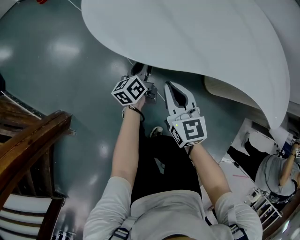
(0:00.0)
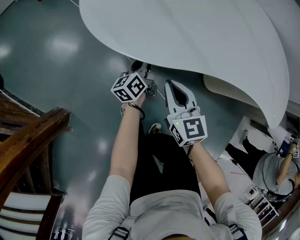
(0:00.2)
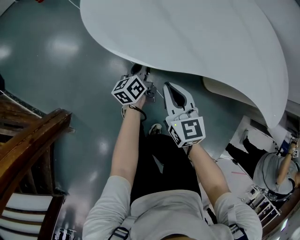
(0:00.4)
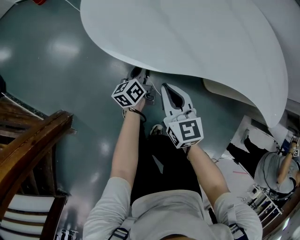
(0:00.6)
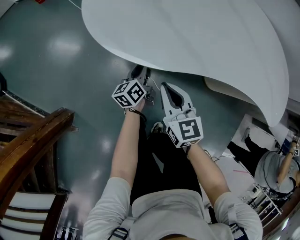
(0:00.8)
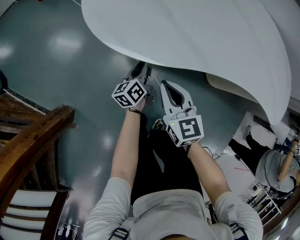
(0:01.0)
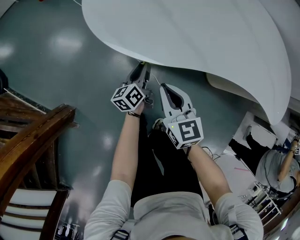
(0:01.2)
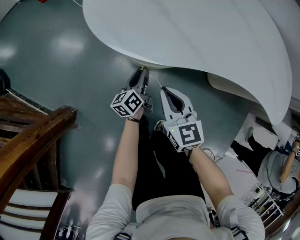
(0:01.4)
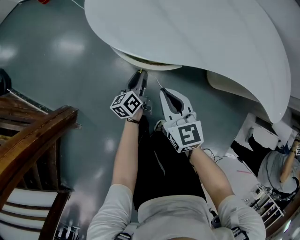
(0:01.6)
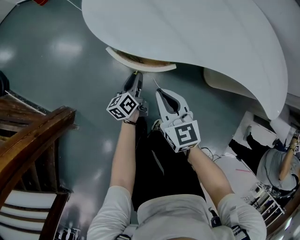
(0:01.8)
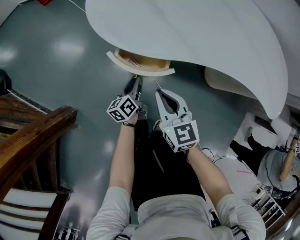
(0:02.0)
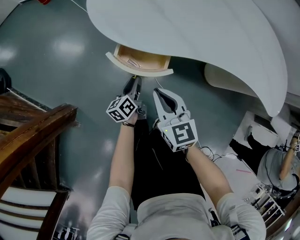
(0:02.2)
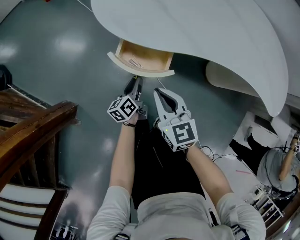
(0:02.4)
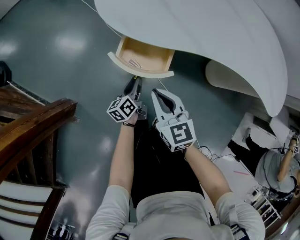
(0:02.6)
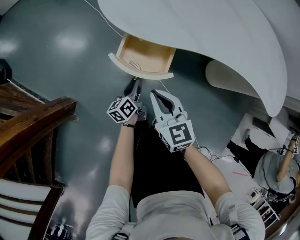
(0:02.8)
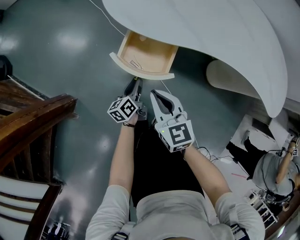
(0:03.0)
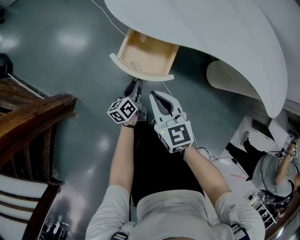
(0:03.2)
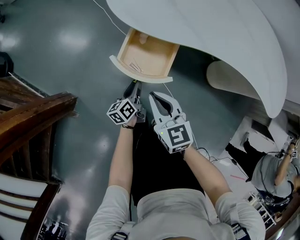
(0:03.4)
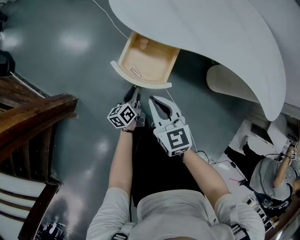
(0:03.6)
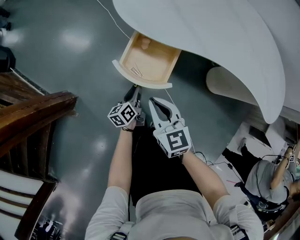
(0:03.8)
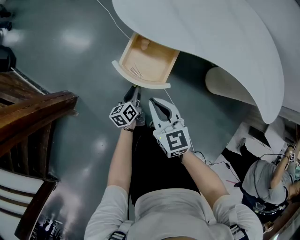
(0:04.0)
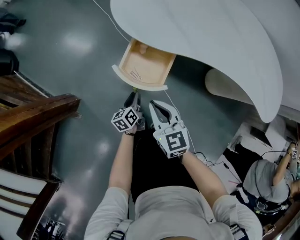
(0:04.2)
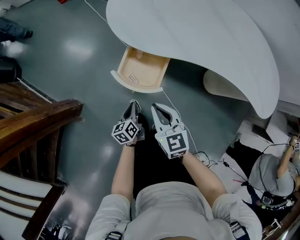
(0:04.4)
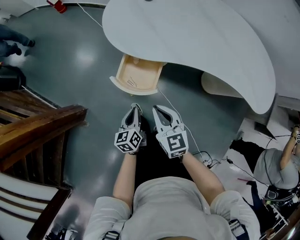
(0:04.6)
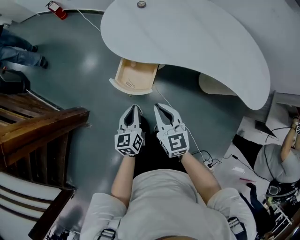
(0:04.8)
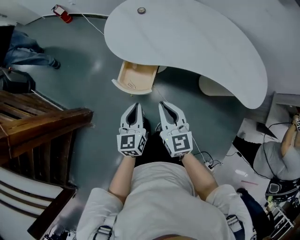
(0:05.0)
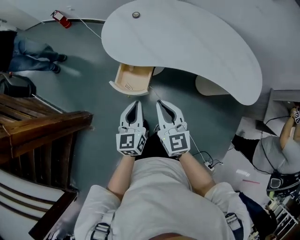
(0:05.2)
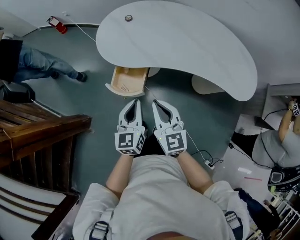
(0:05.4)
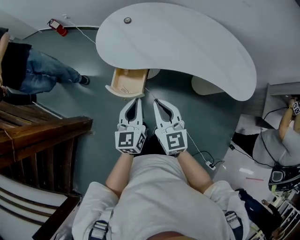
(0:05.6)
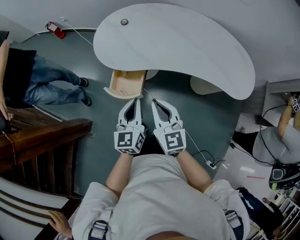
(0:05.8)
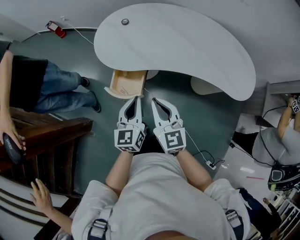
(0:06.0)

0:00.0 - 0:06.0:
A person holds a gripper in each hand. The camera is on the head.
0:00.0 - 0:01.6: The right gripper shifts by about 5 cm; the left gripper shifts approximately 10 cm backward.
0:01.6 - 0:03.0: The right gripper shifts approximately 10 cm backward and to the left. Meanwhile the left gripper travels backward by approximately 10 cm.
0:03.0 - 0:04.4: The right gripper heads upward, covering approximately 5 cm; the left gripper travels backward and upward by about 10 cm, and closes its fingers.
0:04.4 - 0:06.0: The left gripper moves upward and to the right, about 40 cm, and swivels about 40 degrees. Meanwhile the right gripper moves upward and to the right, approximately 25 cm, and turns by about 20 degrees.

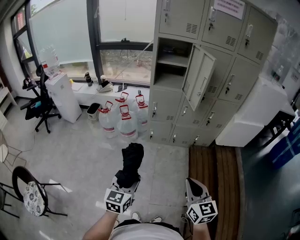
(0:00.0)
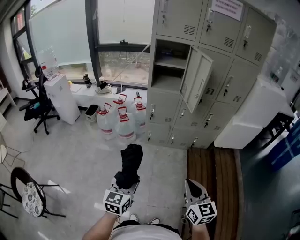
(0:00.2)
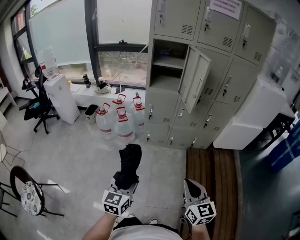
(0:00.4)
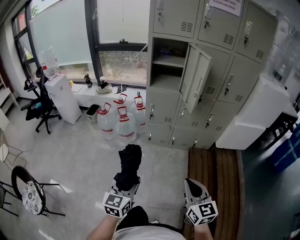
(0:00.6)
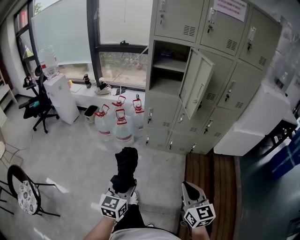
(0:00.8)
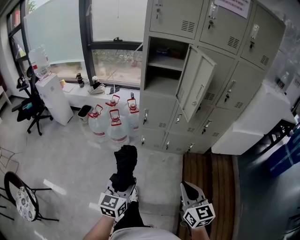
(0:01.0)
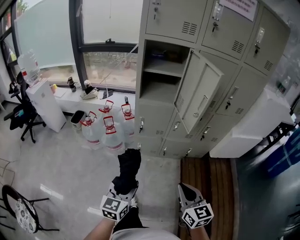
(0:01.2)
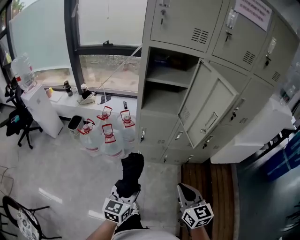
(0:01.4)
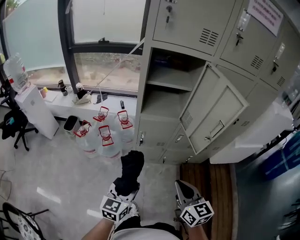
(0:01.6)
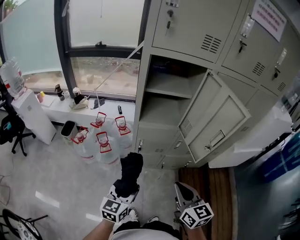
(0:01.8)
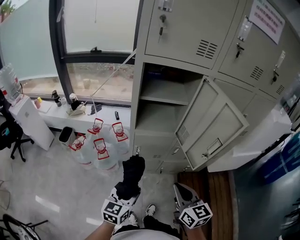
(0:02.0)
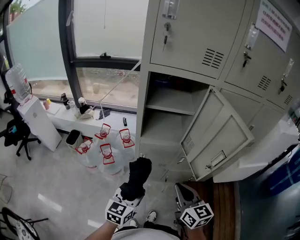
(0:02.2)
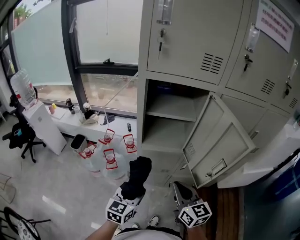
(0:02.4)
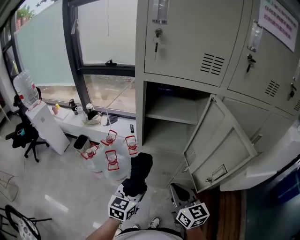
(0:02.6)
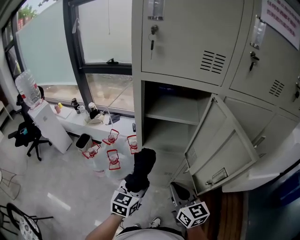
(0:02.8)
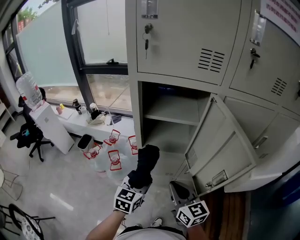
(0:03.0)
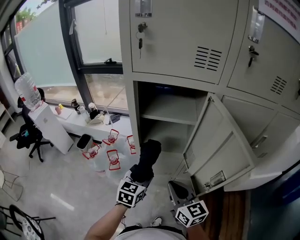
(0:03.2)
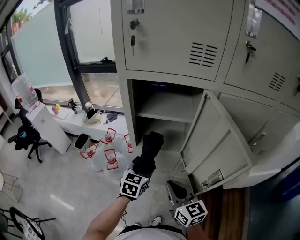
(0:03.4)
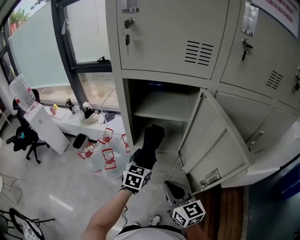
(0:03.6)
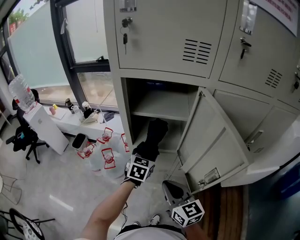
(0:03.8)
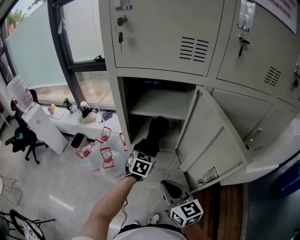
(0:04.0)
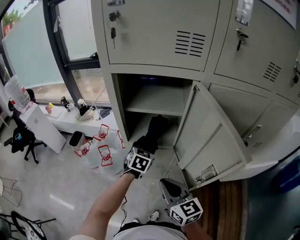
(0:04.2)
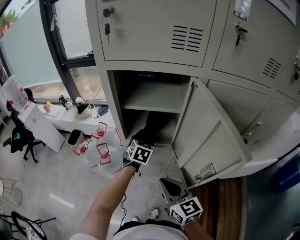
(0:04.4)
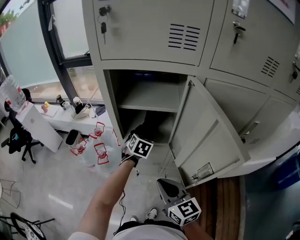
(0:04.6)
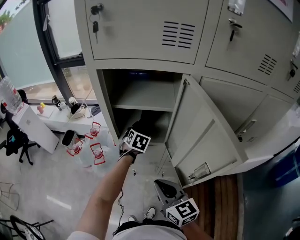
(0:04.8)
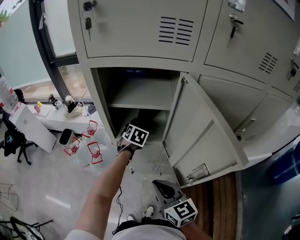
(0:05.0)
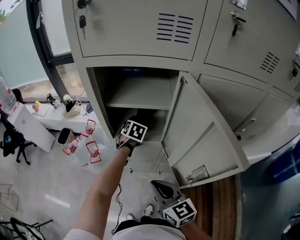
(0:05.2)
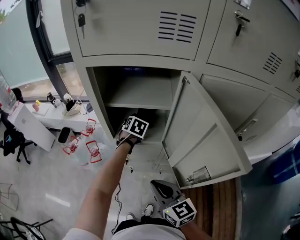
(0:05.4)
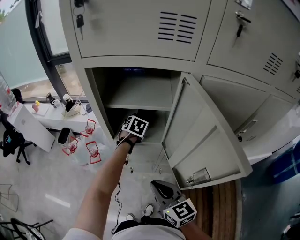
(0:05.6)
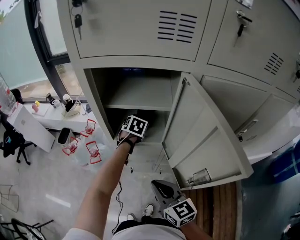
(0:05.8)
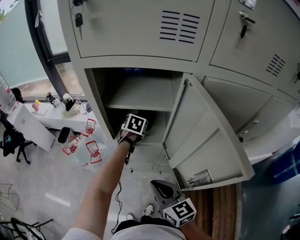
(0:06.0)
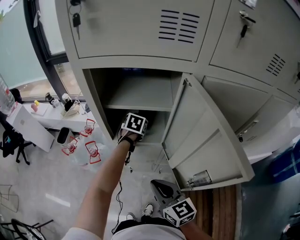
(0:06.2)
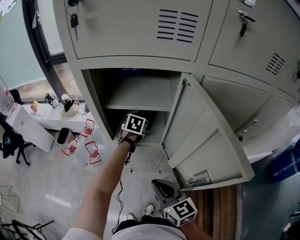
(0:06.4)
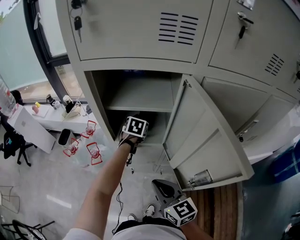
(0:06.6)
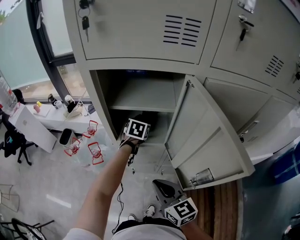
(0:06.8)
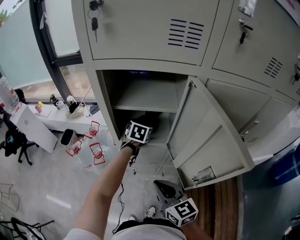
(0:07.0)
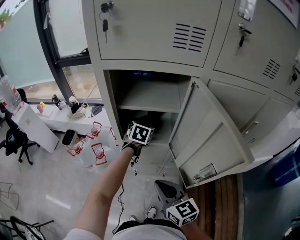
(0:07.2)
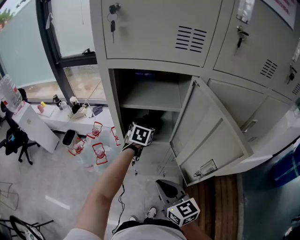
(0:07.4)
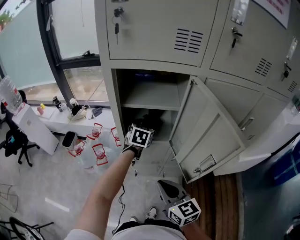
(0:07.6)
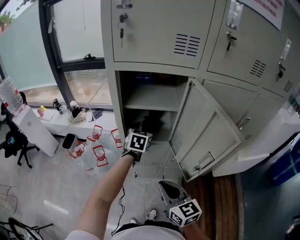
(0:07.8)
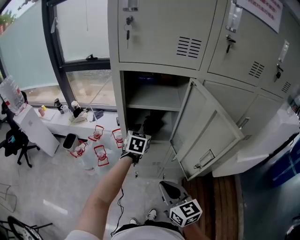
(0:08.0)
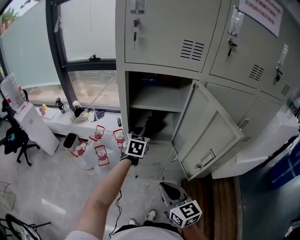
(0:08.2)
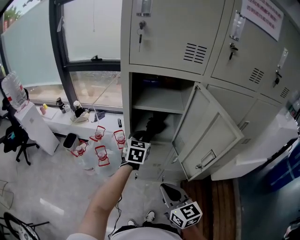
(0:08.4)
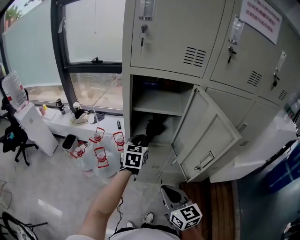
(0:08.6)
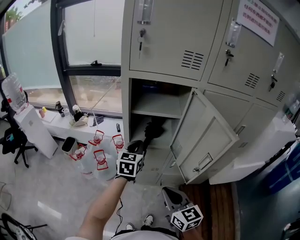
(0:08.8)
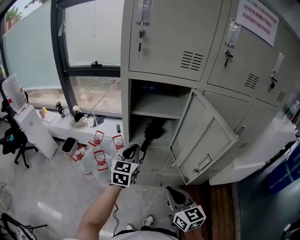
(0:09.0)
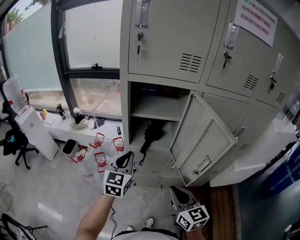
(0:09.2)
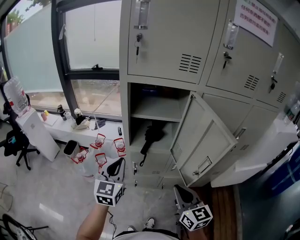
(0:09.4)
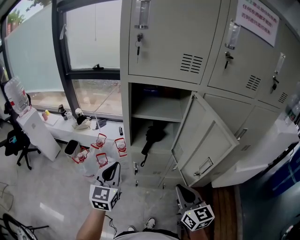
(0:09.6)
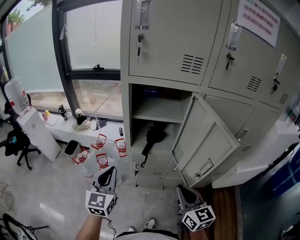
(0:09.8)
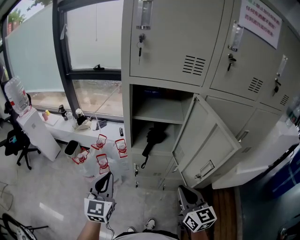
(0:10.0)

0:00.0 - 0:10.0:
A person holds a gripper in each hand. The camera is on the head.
0:00.0 - 0:01.4: The two grippers go about 25 cm forward.
0:01.4 - 0:02.8: The grippers both shift forward by some 25 cm.
0:02.8 - 0:04.2: The left gripper shifts about 20 cm forward and to the right.
0:04.2 - 0:05.8: The left gripper travels forward by about 10 cm.
0:05.8 - 0:07.2: The left gripper shifts approximately 5 cm upward.
0:07.2 - 0:08.6: The left gripper heads backward, to the left and upward, covering approximately 15 cm, and closes up. Meanwhile the right gripper is displaced backward by approximately 5 cm.
0:08.6 - 0:10.0: The left gripper shifts roughly 20 cm backward and to the left; the right gripper travels to the right by about 5 cm.

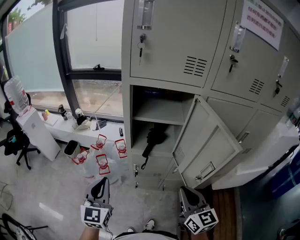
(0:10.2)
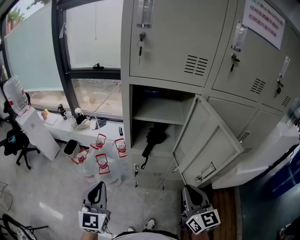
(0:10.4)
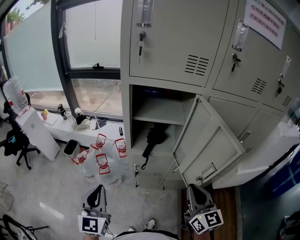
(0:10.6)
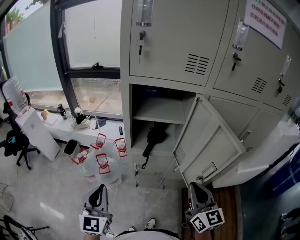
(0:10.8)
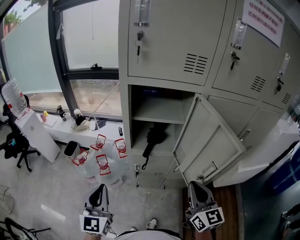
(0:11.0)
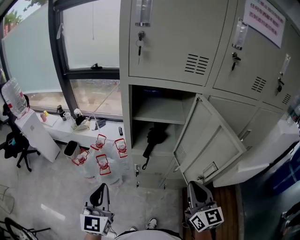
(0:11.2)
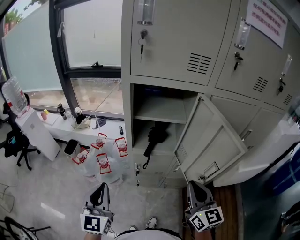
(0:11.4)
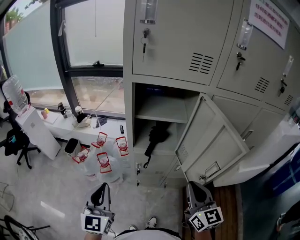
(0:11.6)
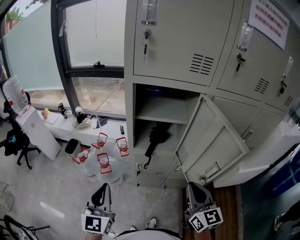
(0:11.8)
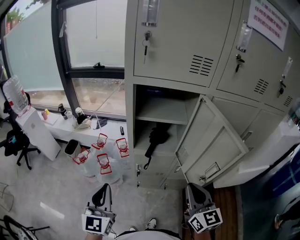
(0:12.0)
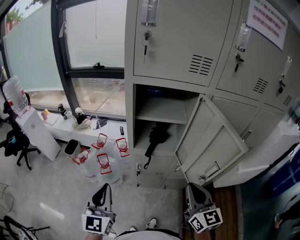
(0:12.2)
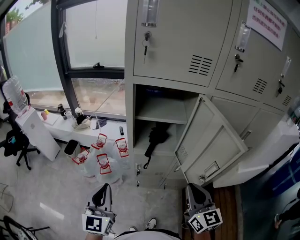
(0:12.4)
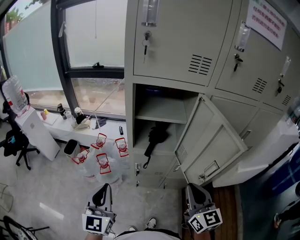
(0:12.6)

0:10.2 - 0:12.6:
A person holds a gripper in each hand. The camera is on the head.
0:10.2 - 0:12.6: The grippers stay close to where they were, moving slightly.

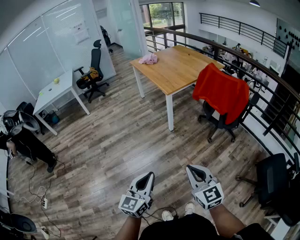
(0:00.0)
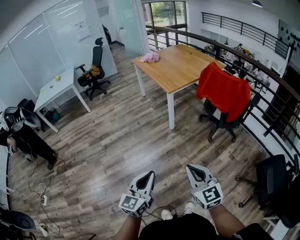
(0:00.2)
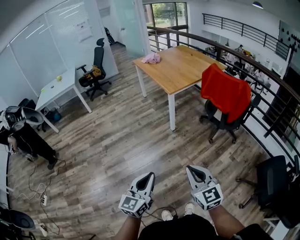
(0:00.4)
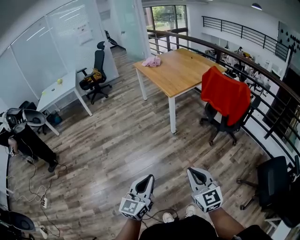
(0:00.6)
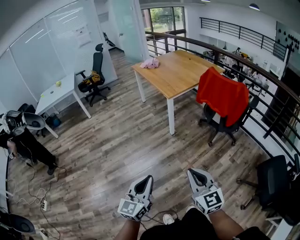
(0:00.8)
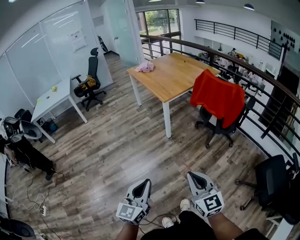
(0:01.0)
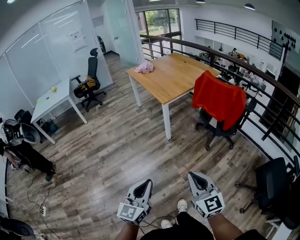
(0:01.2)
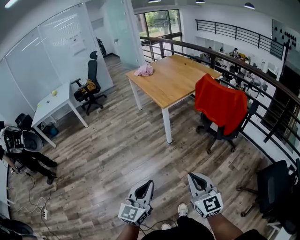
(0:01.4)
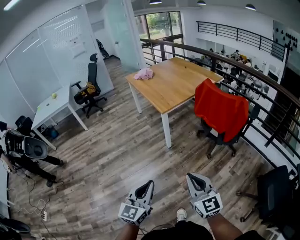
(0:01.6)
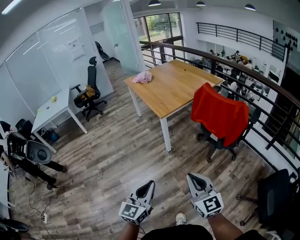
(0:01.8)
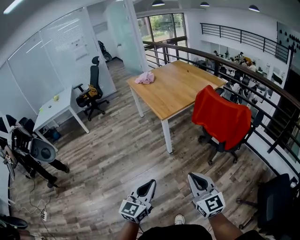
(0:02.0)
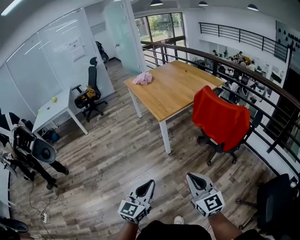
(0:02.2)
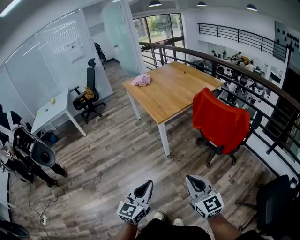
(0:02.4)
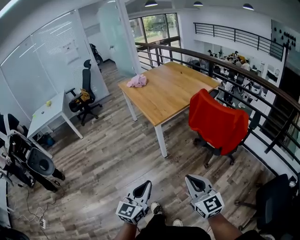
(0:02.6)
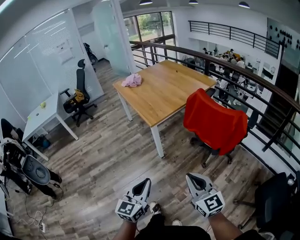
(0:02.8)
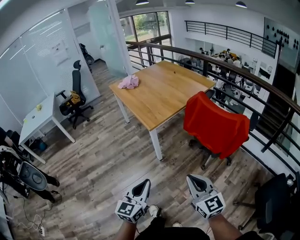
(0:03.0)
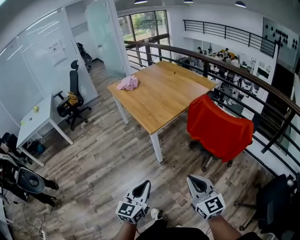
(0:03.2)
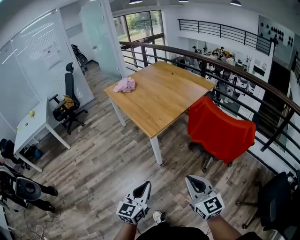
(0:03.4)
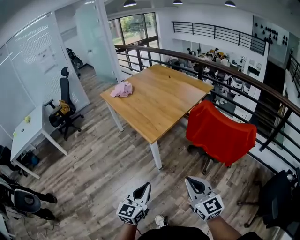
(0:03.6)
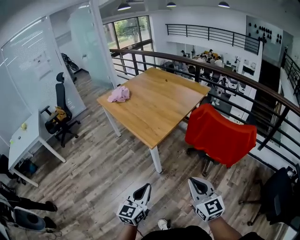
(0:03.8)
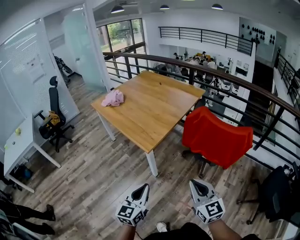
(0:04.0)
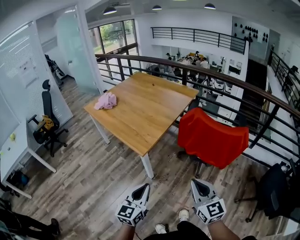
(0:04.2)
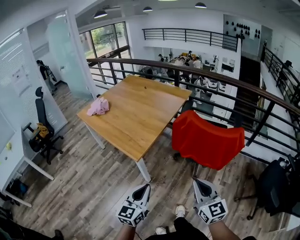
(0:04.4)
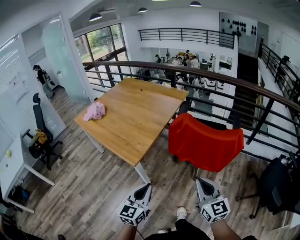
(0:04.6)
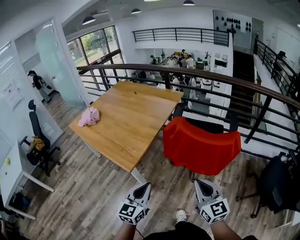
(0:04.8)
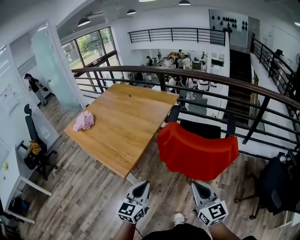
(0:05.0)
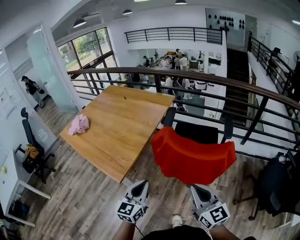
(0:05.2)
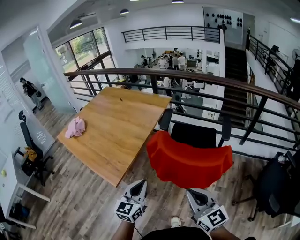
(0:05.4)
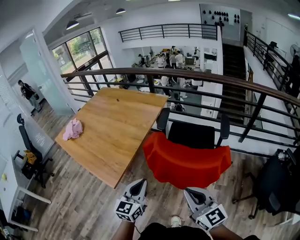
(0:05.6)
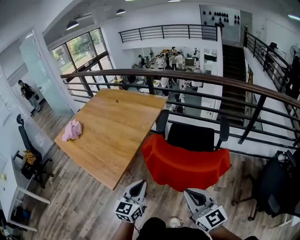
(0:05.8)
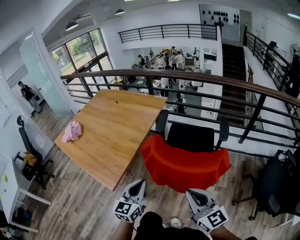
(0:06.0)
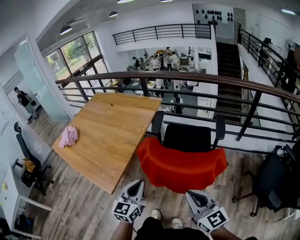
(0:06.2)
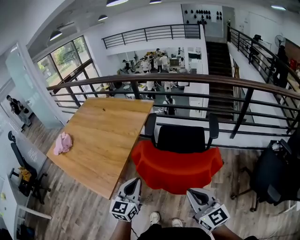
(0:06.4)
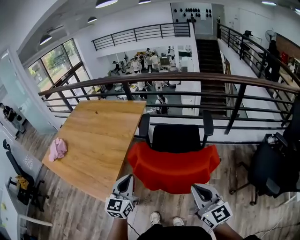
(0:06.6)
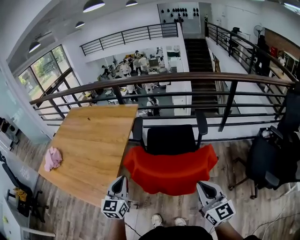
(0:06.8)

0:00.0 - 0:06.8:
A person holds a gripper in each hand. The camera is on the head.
0:00.0 - 0:01.4: Both grippers travel together forward, approximately 5 cm.
0:01.4 - 0:02.8: The right gripper moves forward and to the right, some 20 cm. Meanwhile the left gripper travels forward by approximately 20 cm.
0:02.8 - 0:04.0: Both grippers move forward and to the left, some 20 cm.
0:04.0 - 0:05.4: The grippers both shift forward and to the right by some 25 cm.
0:05.4 - 0:06.8: The right gripper is displaced to the right by some 10 cm, and changes its angle by some 20 degrees. Meanwhile the left gripper travels forward by roughly 15 cm.
